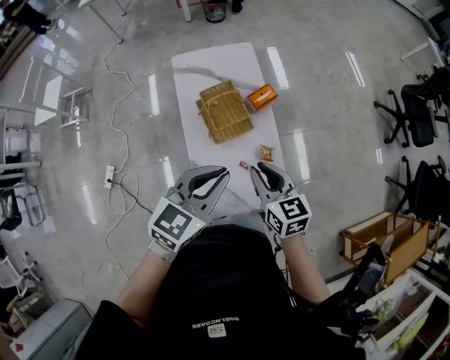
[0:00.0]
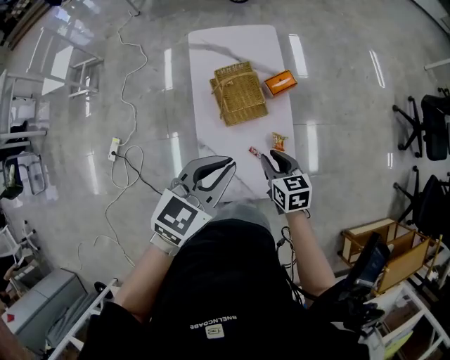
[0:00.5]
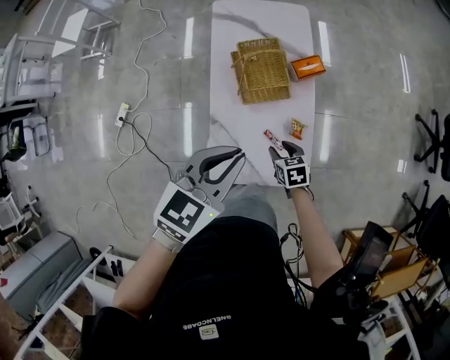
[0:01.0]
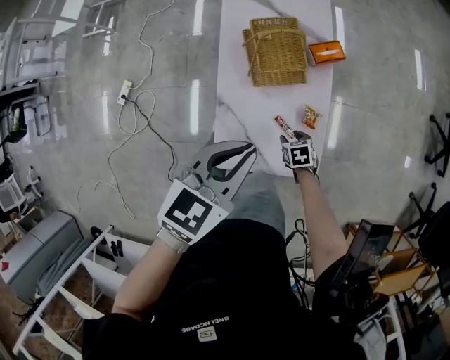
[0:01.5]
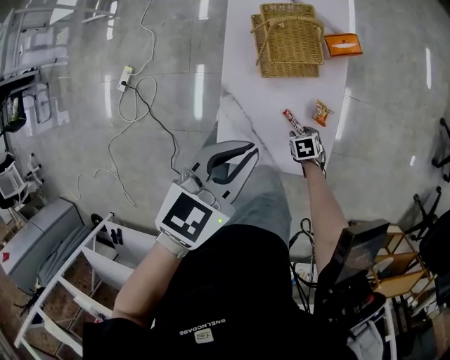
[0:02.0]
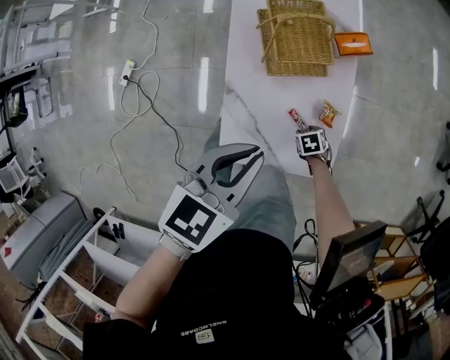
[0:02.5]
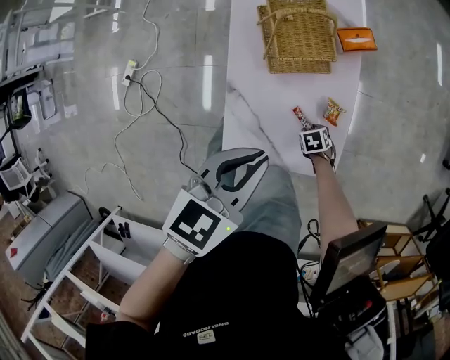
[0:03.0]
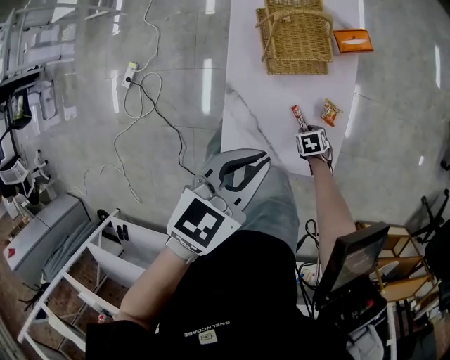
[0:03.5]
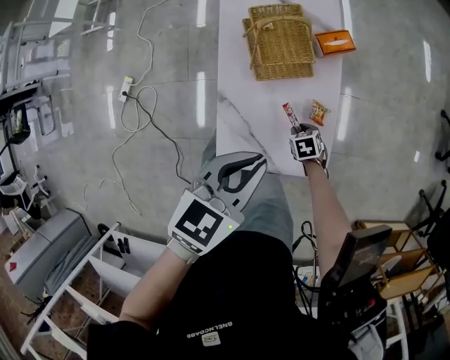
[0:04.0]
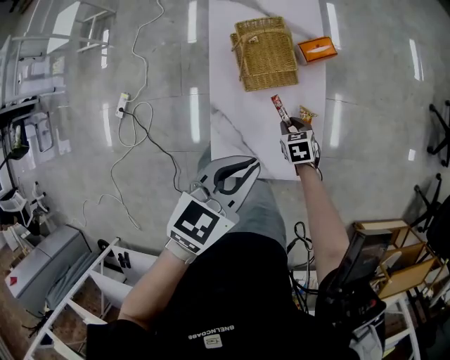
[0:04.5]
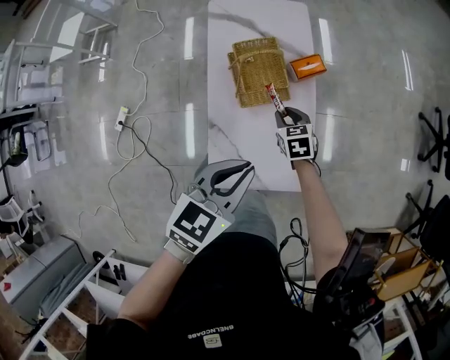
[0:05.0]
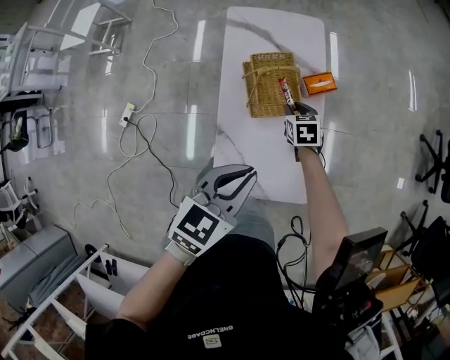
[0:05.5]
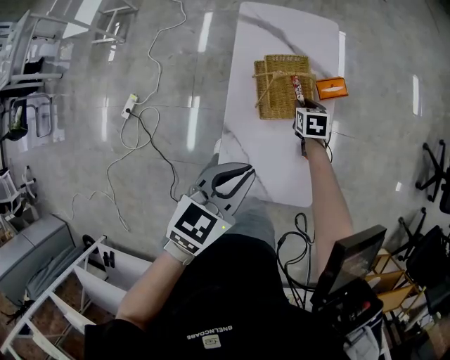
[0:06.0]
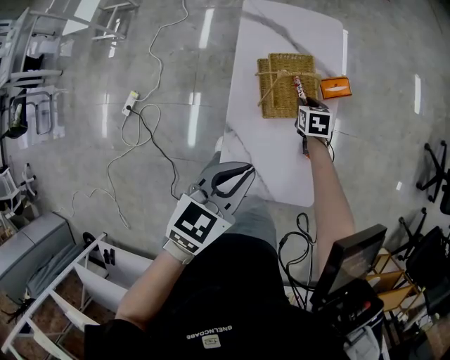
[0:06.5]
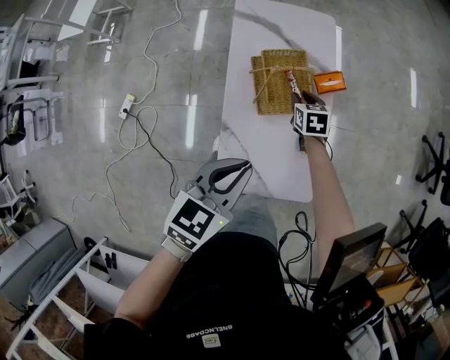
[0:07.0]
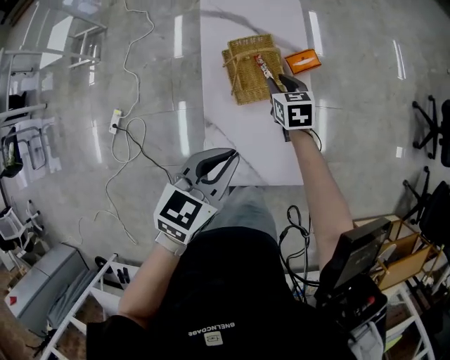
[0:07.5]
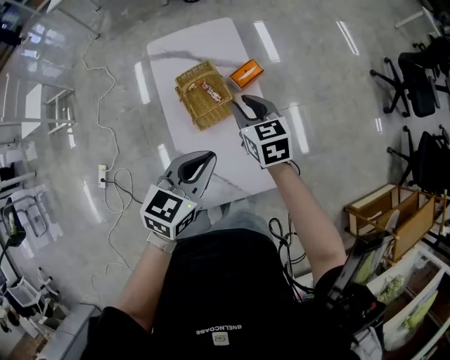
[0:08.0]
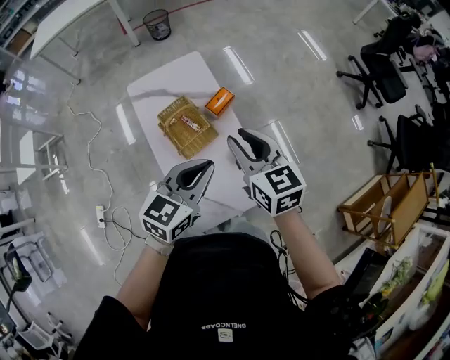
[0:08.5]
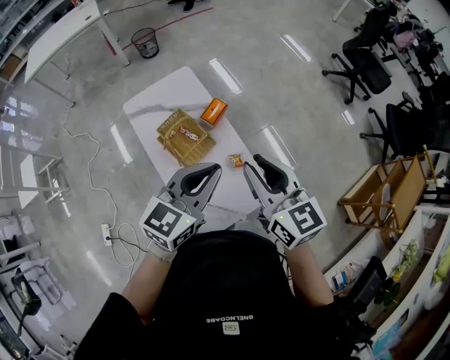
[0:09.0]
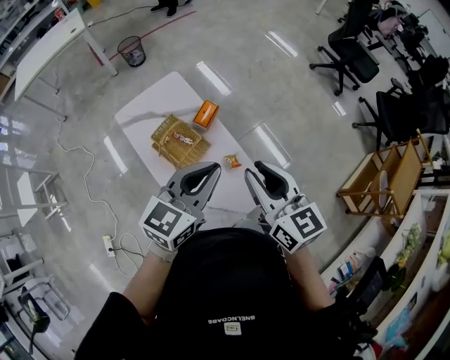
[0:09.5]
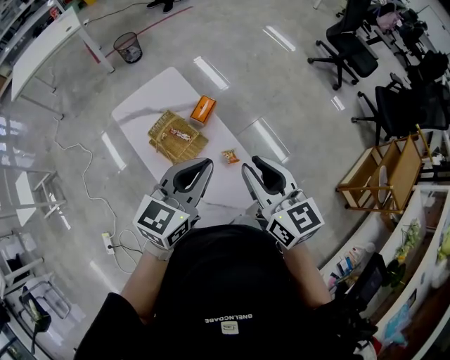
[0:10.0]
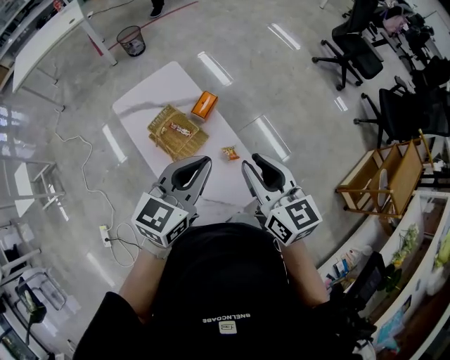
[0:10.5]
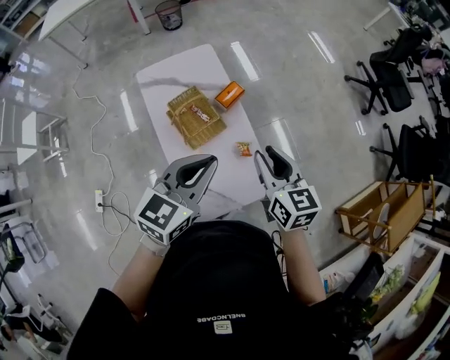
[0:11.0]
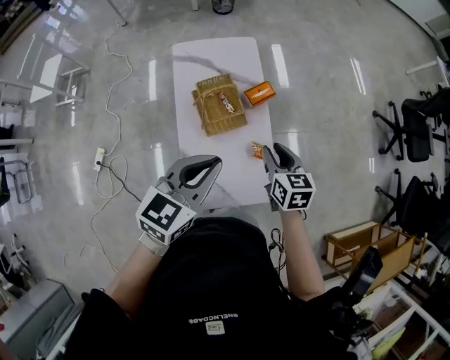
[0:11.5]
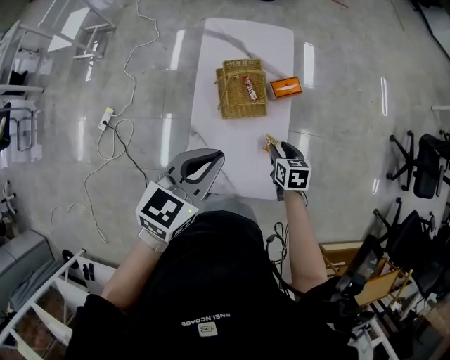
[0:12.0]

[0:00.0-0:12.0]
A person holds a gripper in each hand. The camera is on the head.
0:00.0 to 0:02.0: The left gripper shifts approximately 15 cm downward, and rotates roughly 20 degrees; the right gripper heads downward, covering roughly 50 cm, tips its fingers downward by about 50 degrees, and opens.
0:02.0 to 0:04.0: The grippers make only small movements.
0:04.0 to 0:06.0: The right gripper moves forward and upward, roughly 30 cm, and rotates about 20 degrees, while the left gripper moves to the left, approximately 5 cm.
0:06.0 to 0:08.0: The left gripper is displaced to the right by roughly 5 cm, while the right gripper travels upward by about 25 cm, and swivels about 20 degrees.
0:08.0 to 0:10.0: The left gripper is displaced upward by some 15 cm, and rotates about 30 degrees, while the right gripper shifts about 25 cm upward, backward and to the right, and turns by about 30 degrees.
0:10.0 to 0:12.0: The left gripper goes about 10 cm downward, and swivels about 40 degrees; the right gripper goes some 35 cm downward, and tips its fingers downward by roughly 40 degrees.

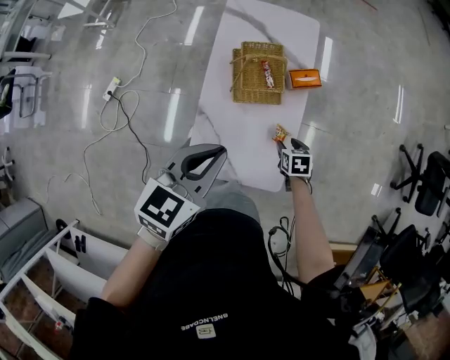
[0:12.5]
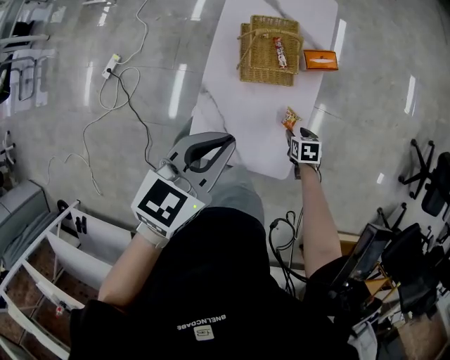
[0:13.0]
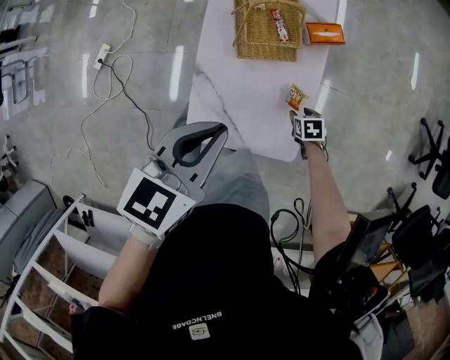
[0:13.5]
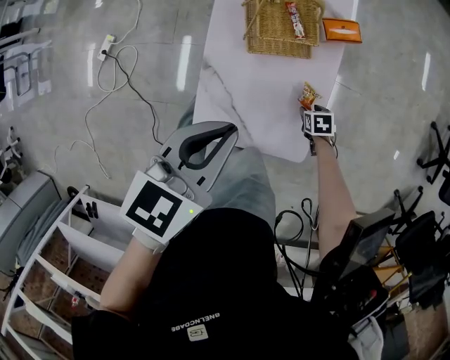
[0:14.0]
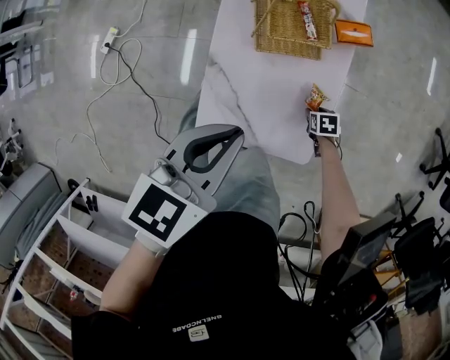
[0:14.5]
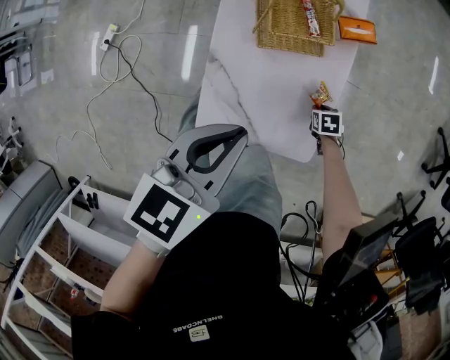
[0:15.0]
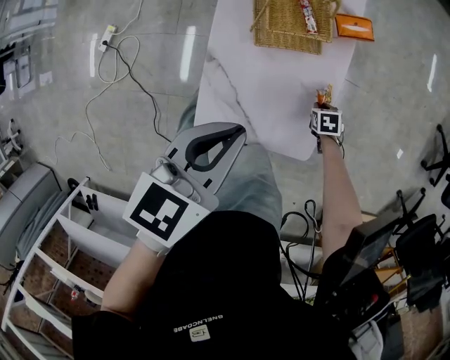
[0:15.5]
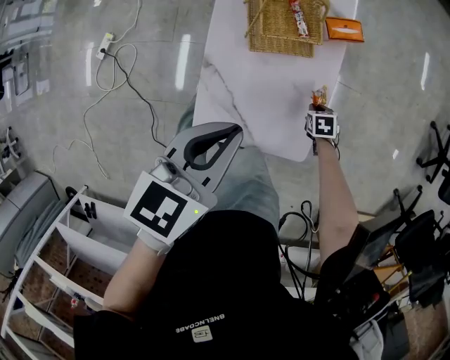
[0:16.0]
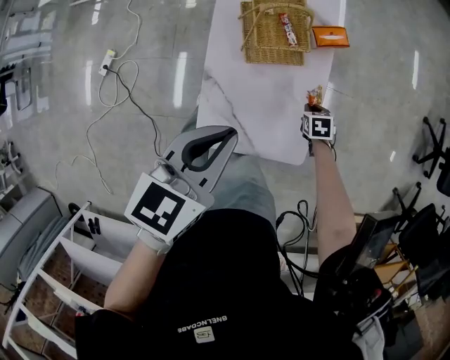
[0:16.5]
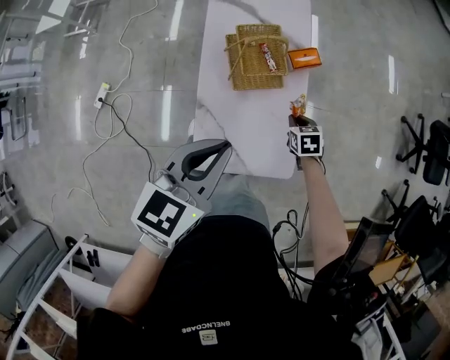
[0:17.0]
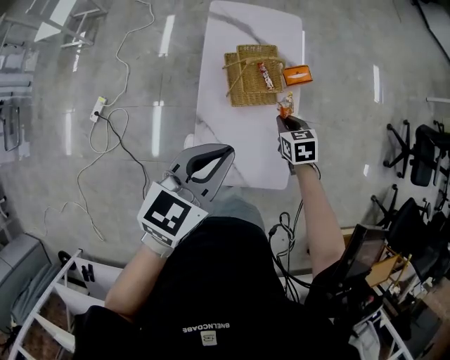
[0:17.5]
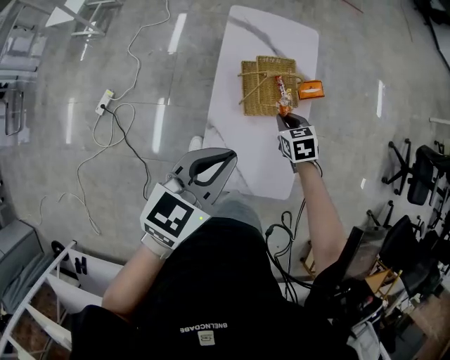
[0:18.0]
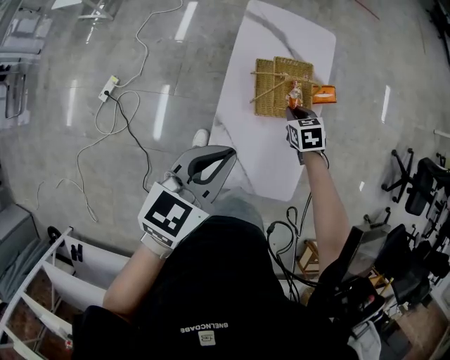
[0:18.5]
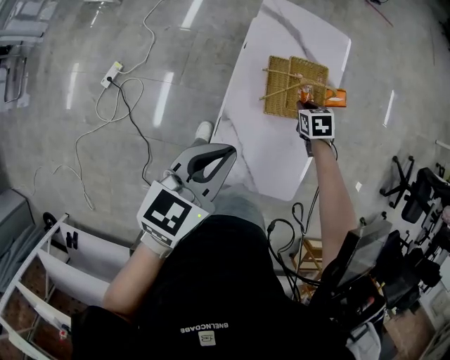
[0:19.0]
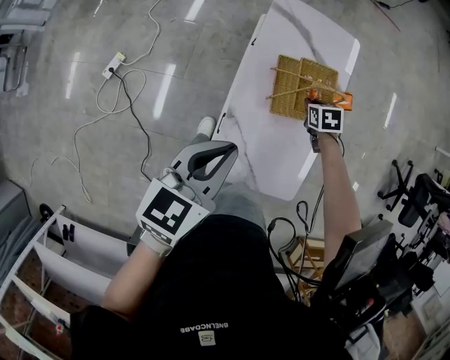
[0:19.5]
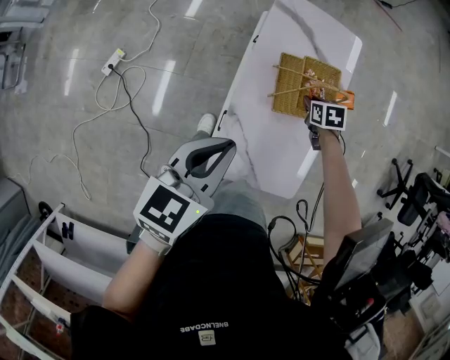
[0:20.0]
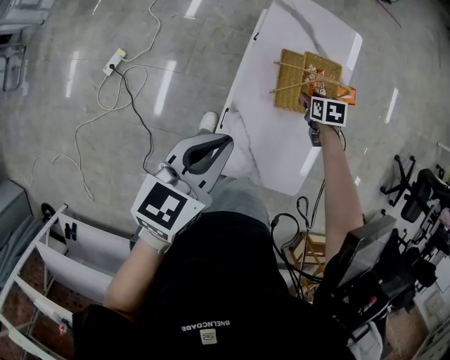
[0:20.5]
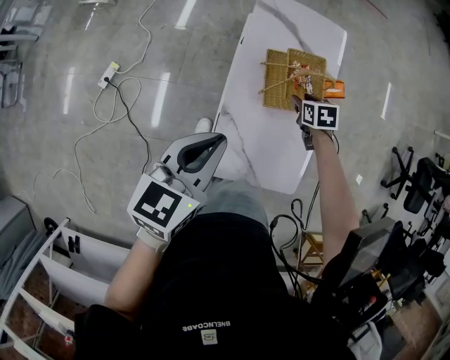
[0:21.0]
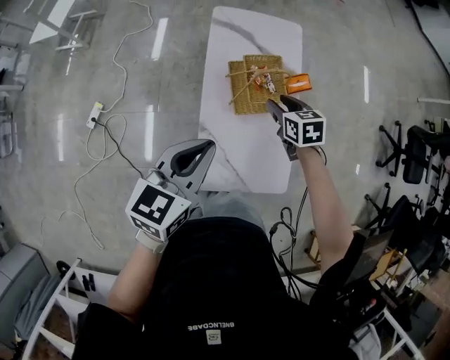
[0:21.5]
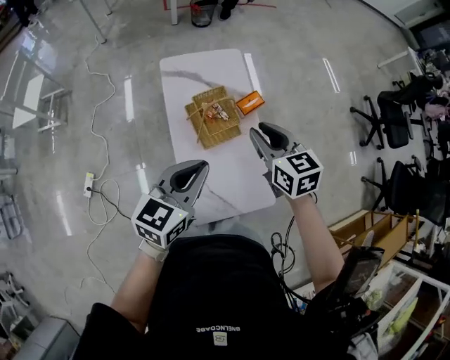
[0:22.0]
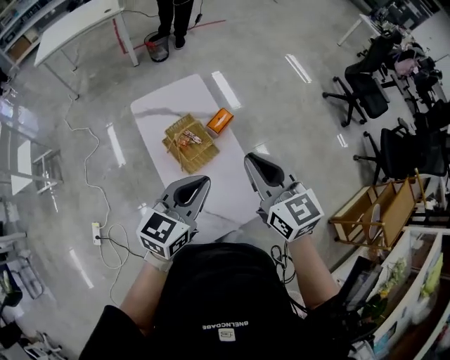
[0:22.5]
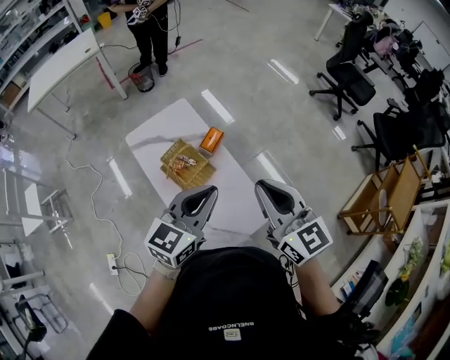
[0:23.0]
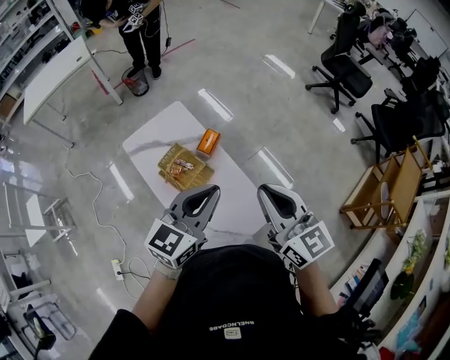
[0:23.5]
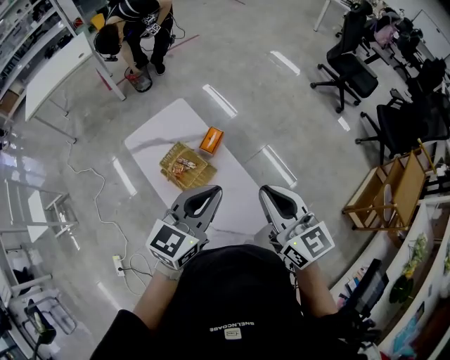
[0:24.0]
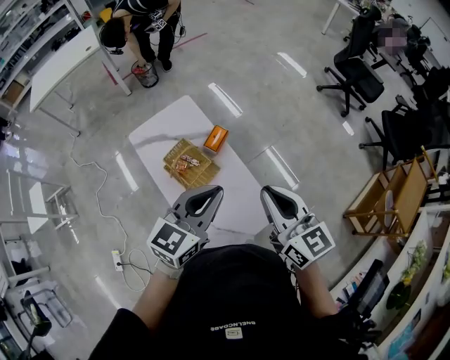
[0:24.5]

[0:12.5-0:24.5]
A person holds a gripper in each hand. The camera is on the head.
0:12.5 to 0:14.5: The left gripper goes roughly 10 cm downward; the right gripper travels downward by some 20 cm.
0:14.5 to 0:16.5: The right gripper heads upward, covering some 10 cm, and closes.
0:16.5 to 0:18.5: The left gripper moves to the left and upward, some 15 cm. The right gripper heads to the left, upward and forward, covering about 30 cm.
0:18.5 to 0:20.5: The left gripper heads to the left, covering some 5 cm; the right gripper travels downward by approximately 5 cm, and opens its fingers.
0:20.5 to 0:22.5: The left gripper shifts by about 25 cm, and changes its angle by about 40 degrees, while the right gripper shifts roughly 50 cm upward, tilts its fingers approximately 50 degrees upward, and closes up.
0:22.5 to 0:24.5: The grippers both shift to the right by about 5 cm.

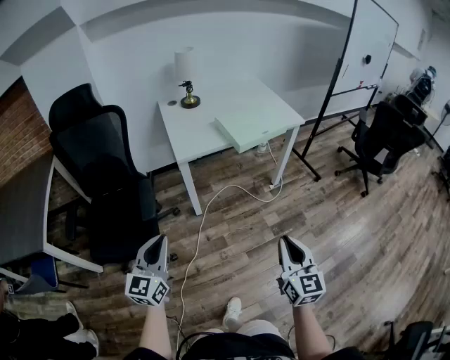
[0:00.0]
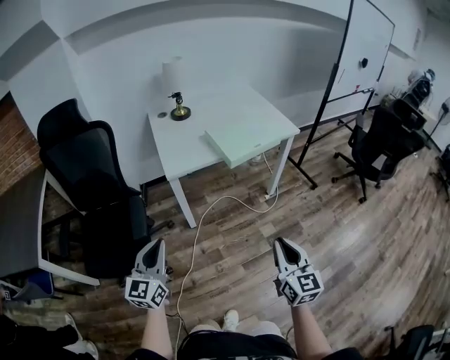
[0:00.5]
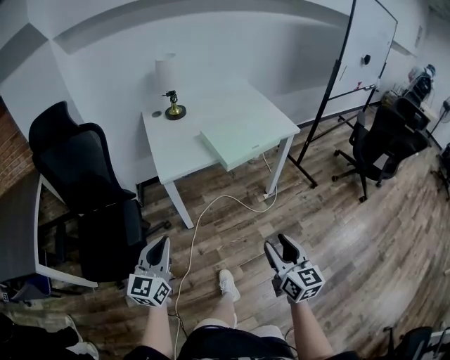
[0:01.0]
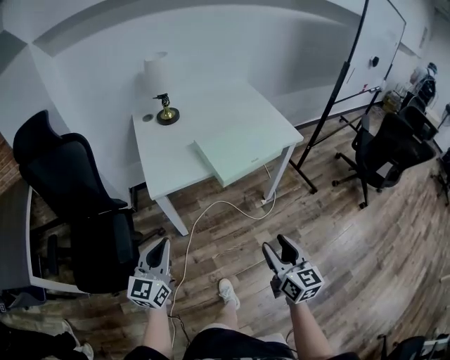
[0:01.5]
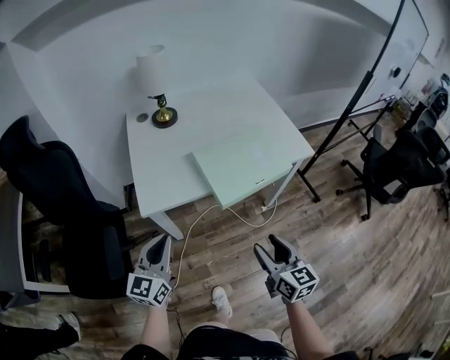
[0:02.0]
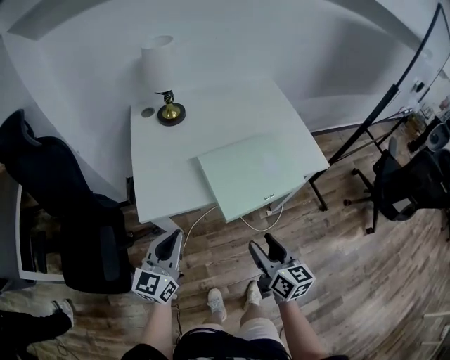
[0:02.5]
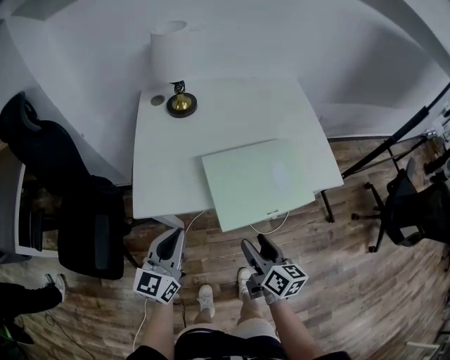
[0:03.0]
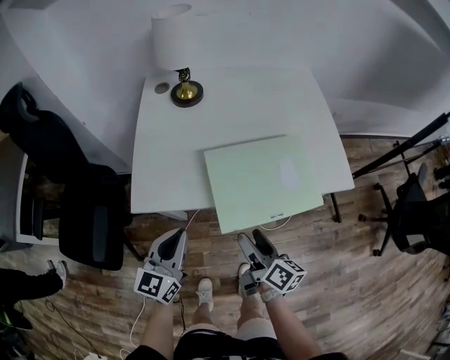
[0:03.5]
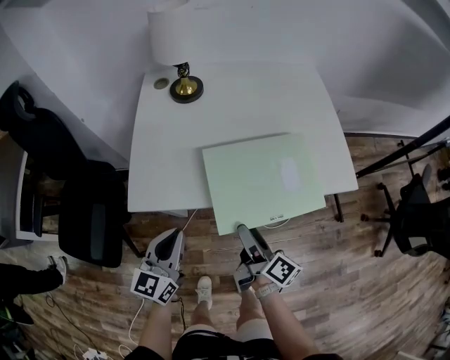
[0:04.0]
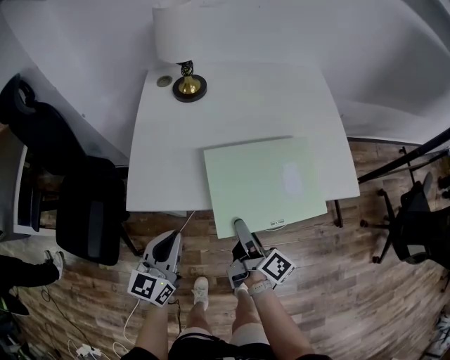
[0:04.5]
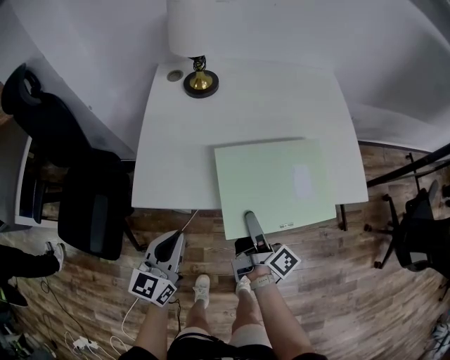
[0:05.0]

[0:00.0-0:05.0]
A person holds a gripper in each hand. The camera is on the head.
0:00.0 to 0:02.5: The pair of grippers is taken forward, some 40 cm. The right gripper turns by approximately 30 degrees, and opens.
0:02.5 to 0:05.0: The left gripper goes approximately 5 cm downward, while the right gripper is displaced forward and downward by approximately 20 cm, and twists approximately 50 degrees clockwise, seen from behind.
